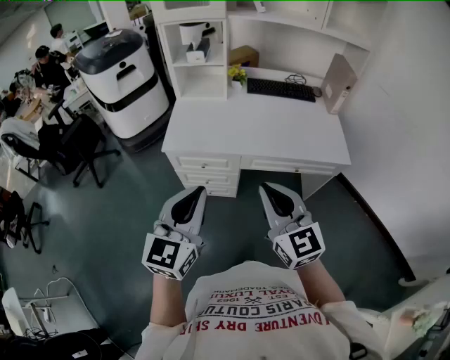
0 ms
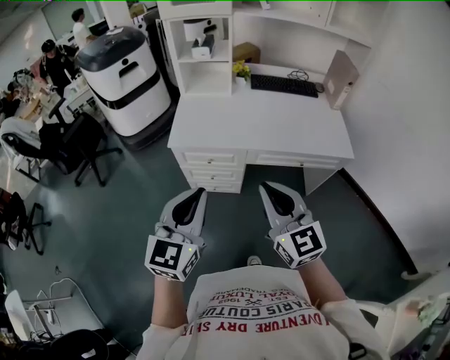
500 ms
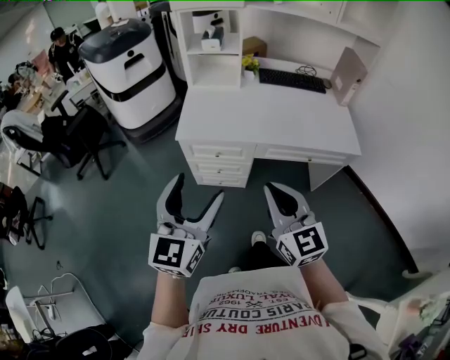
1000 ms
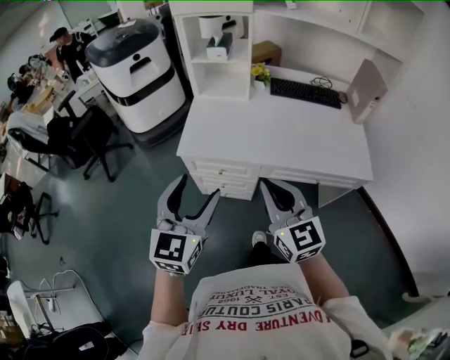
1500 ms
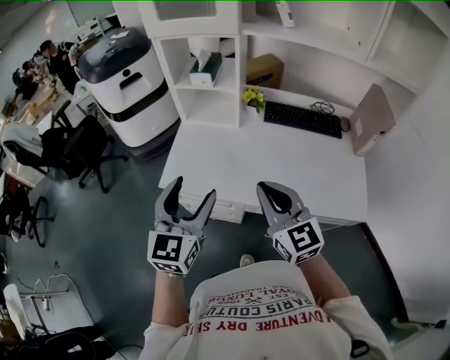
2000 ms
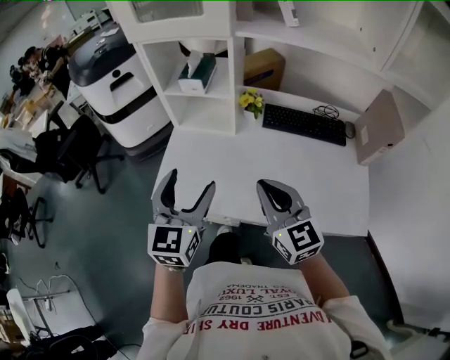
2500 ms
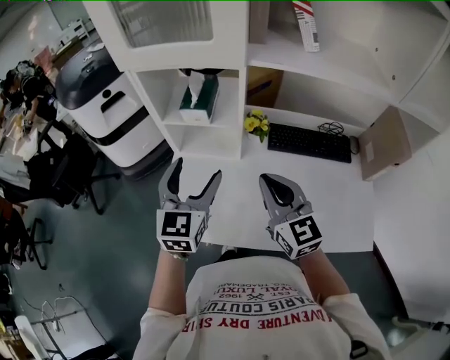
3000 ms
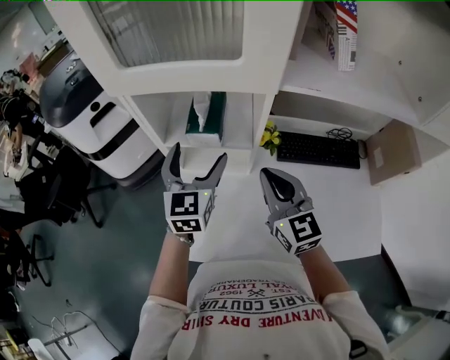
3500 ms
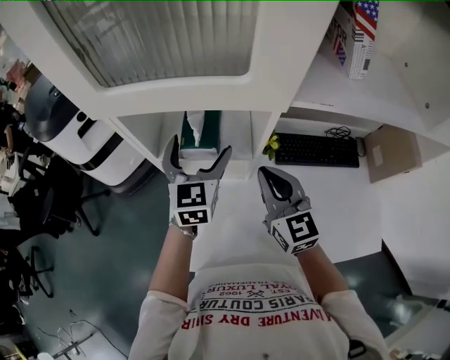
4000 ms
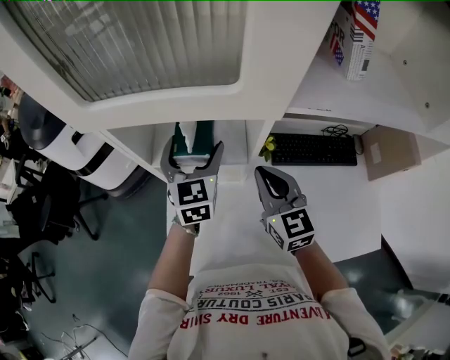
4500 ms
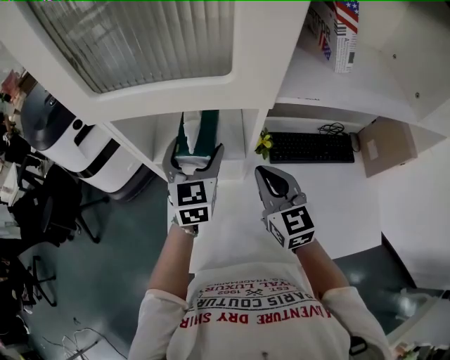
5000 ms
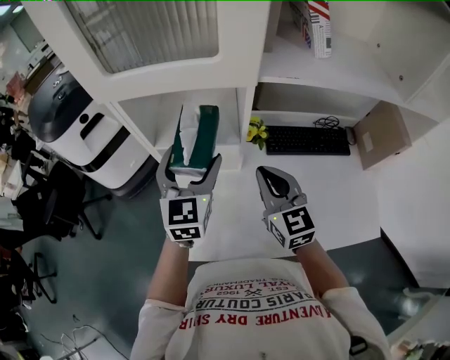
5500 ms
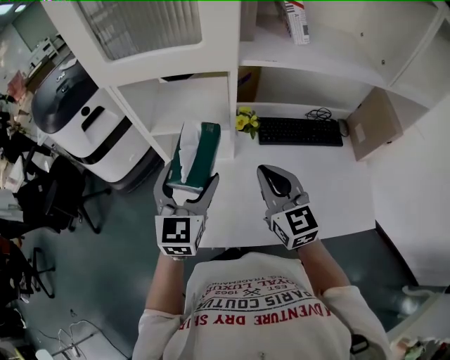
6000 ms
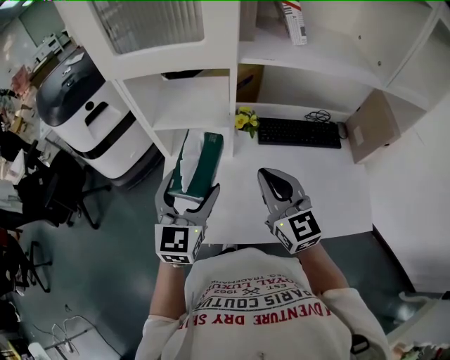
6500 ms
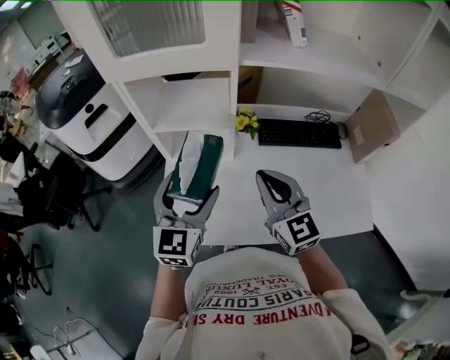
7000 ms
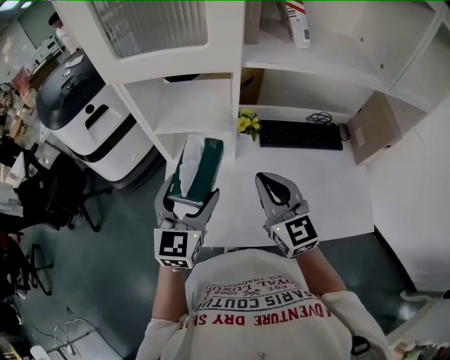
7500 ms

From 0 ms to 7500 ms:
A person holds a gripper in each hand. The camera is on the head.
From 0 ms to 2000 ms: Both grippers move forward, some 25 cm. The left gripper opens.
From 2000 ms to 4000 ms: Both grippers move forward, roughly 40 cm. The left gripper opens its fingers.
From 4000 ms to 5500 ms: The left gripper travels backward by some 10 cm; the right gripper goes some 5 cm backward.
From 5500 ms to 7500 ms: The right gripper goes roughly 10 cm backward. The left gripper moves backward, some 15 cm.

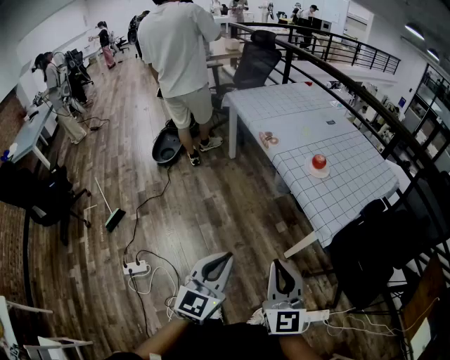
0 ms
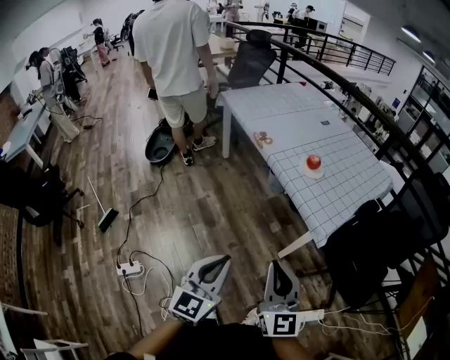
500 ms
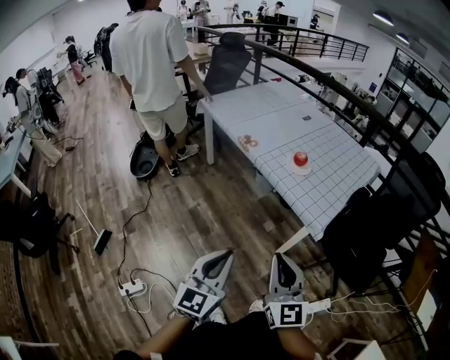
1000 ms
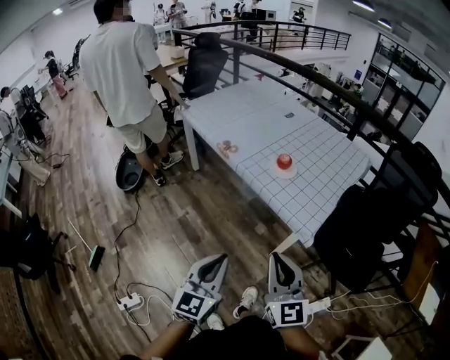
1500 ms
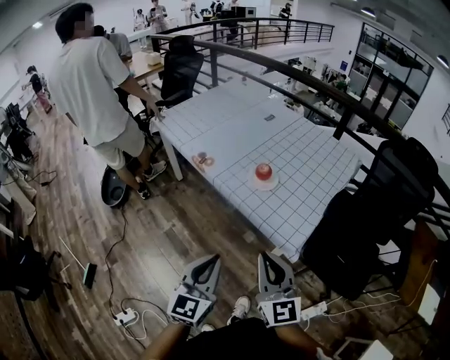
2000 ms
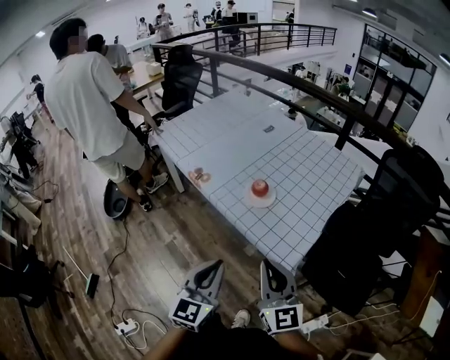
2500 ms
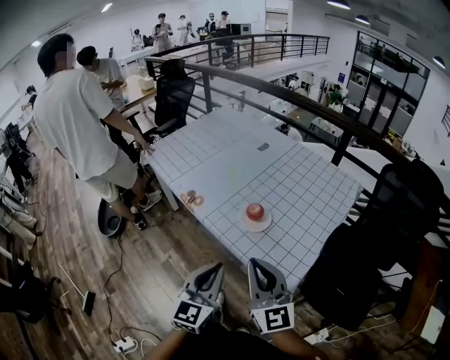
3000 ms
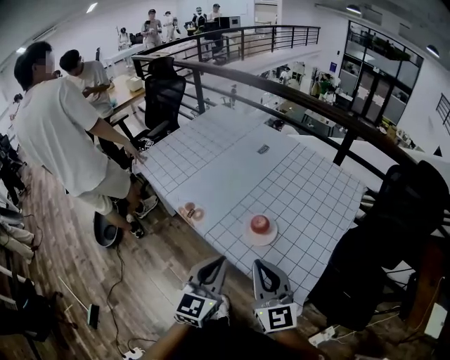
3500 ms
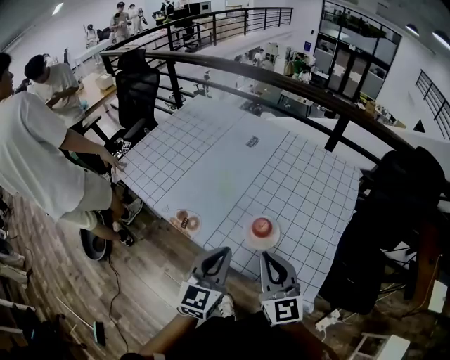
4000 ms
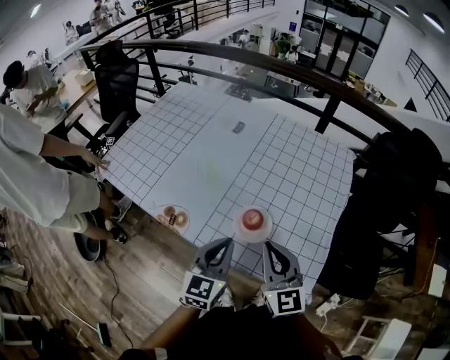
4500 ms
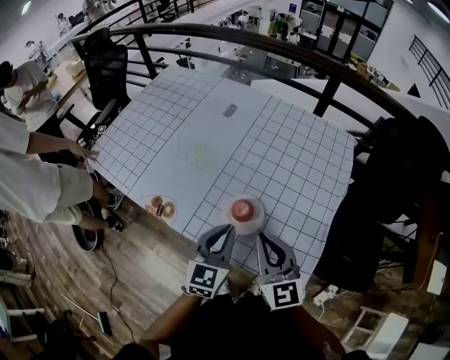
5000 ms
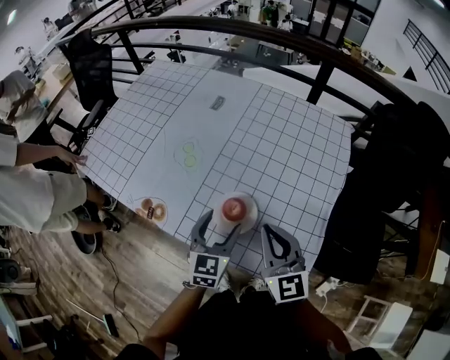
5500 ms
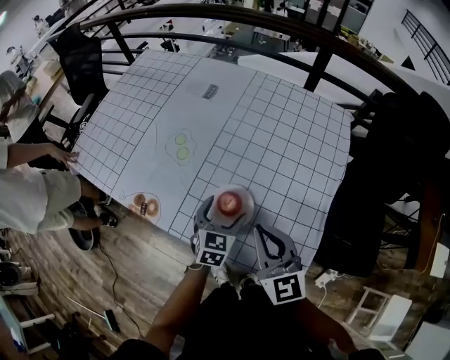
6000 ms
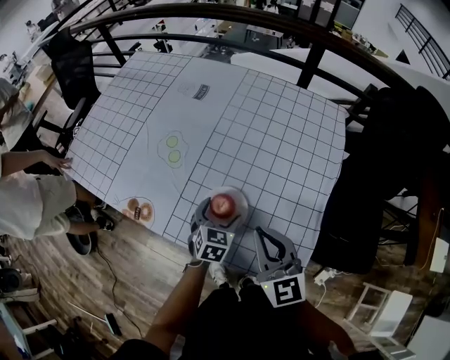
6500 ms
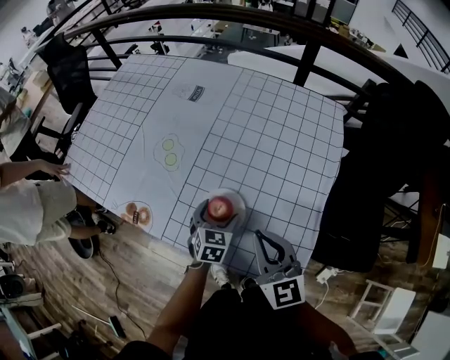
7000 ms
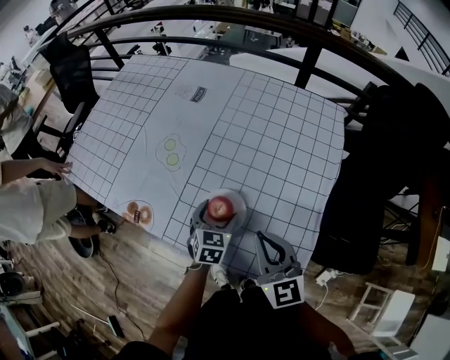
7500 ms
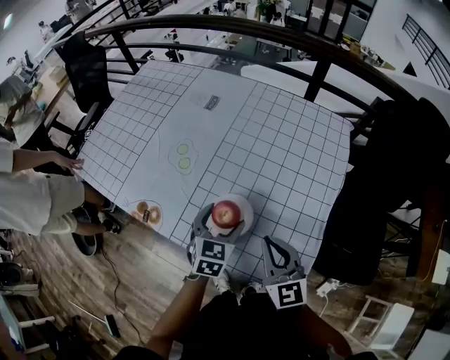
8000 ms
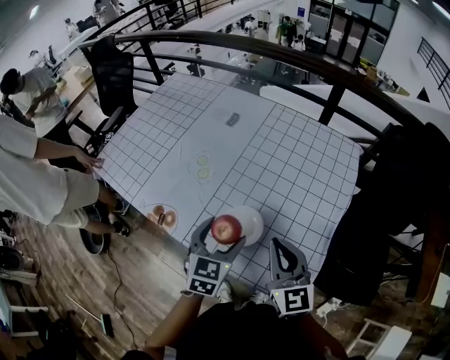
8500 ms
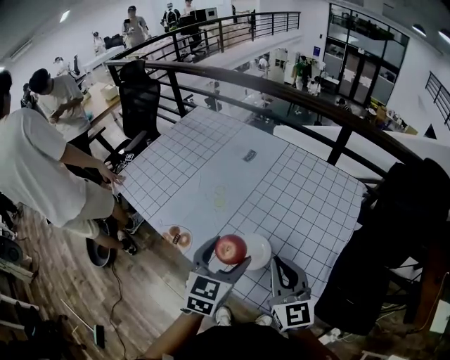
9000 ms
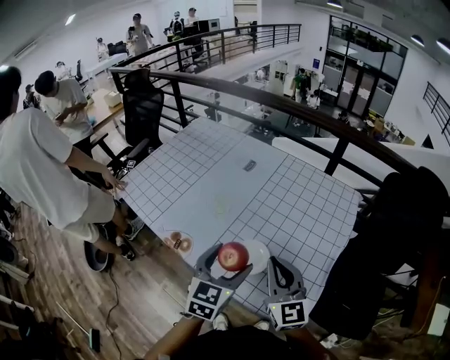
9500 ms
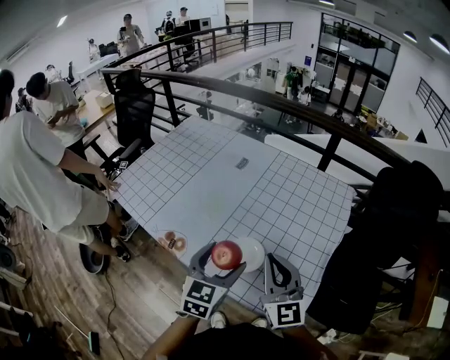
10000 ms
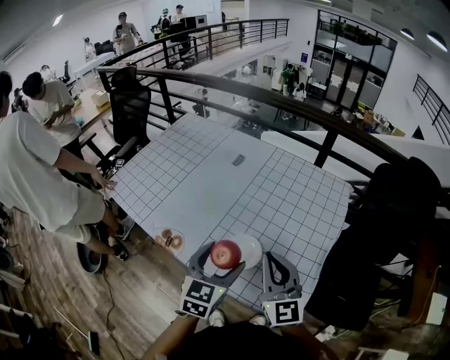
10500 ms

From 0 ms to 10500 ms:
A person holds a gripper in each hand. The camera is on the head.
From 0 ms to 2000 ms: Both grippers move forward and to the right, approximately 20 cm.
From 2000 ms to 4000 ms: Both grippers move forward, about 35 cm.
From 4000 ms to 6500 ms: The right gripper goes about 15 cm to the right, forward and downward, while the left gripper is displaced downward, forward and to the right by approximately 30 cm, tips its fingers downward by roughly 30 degrees, and opens up.
From 6500 ms to 8500 ms: The left gripper goes some 15 cm upward.
From 8500 ms to 10500 ms: Both grippers travel together upward, some 10 cm.

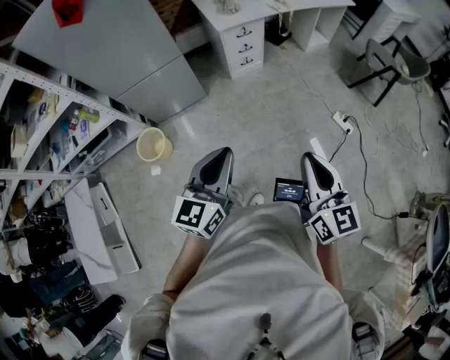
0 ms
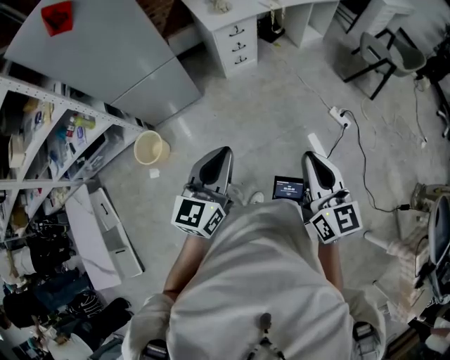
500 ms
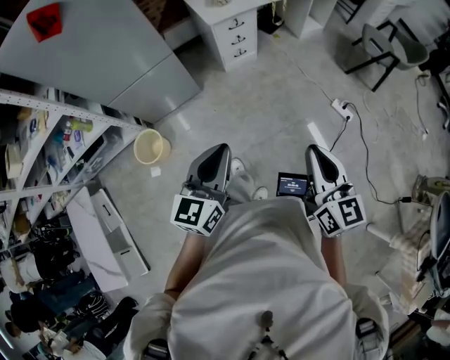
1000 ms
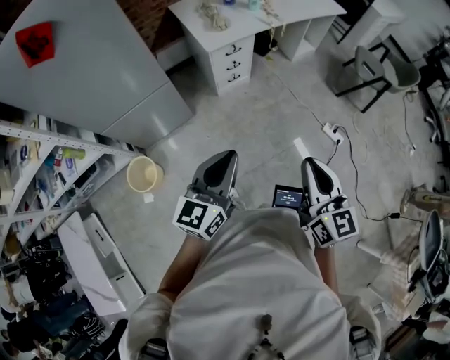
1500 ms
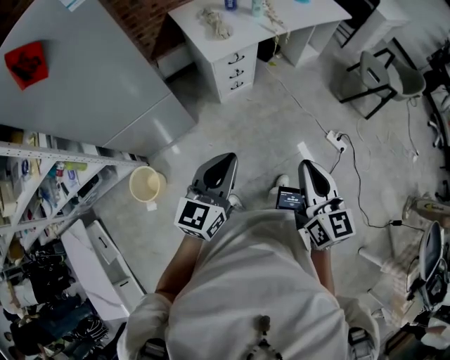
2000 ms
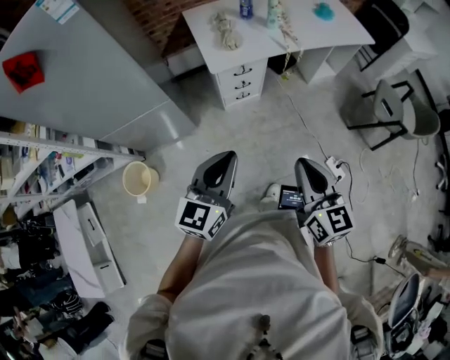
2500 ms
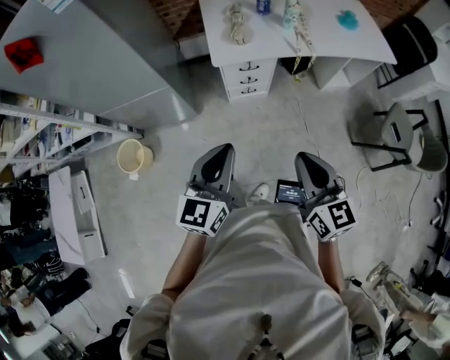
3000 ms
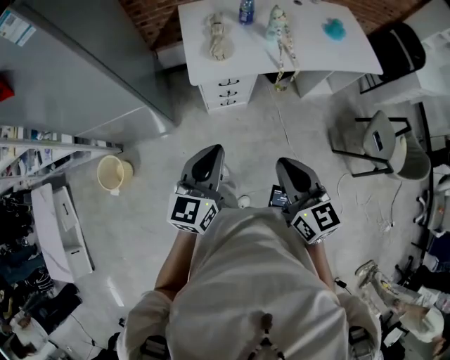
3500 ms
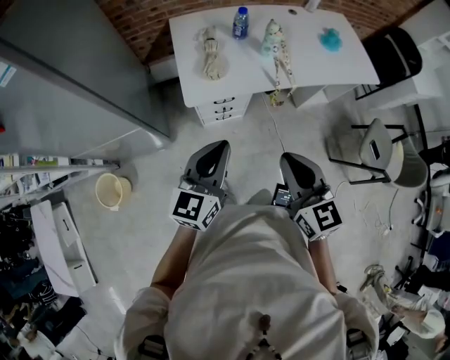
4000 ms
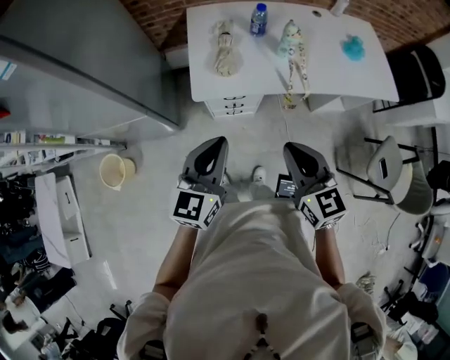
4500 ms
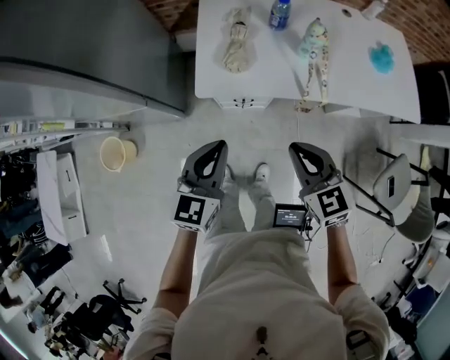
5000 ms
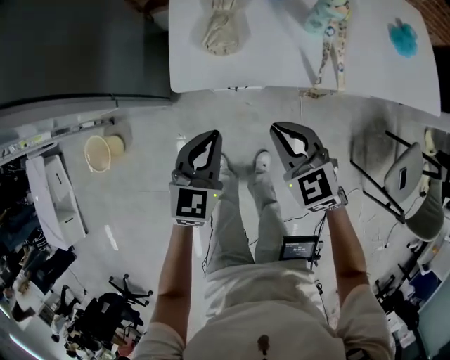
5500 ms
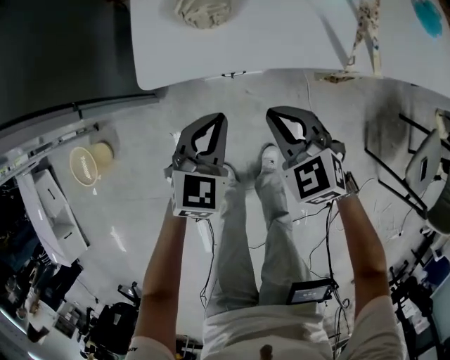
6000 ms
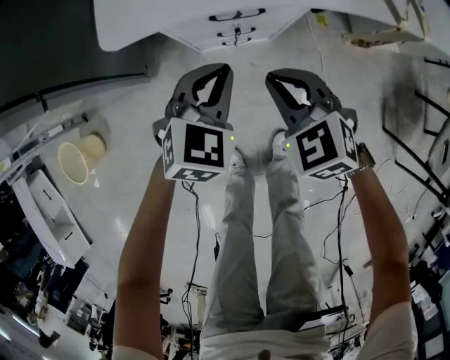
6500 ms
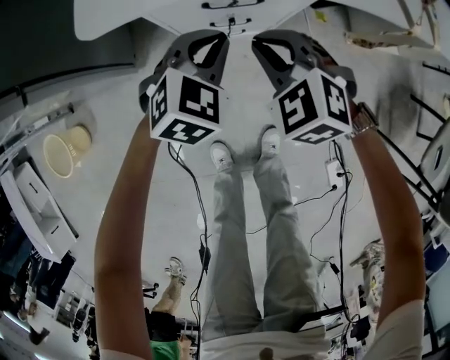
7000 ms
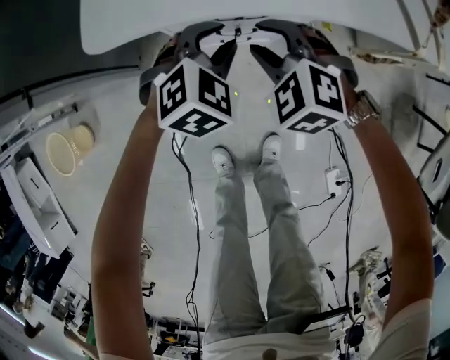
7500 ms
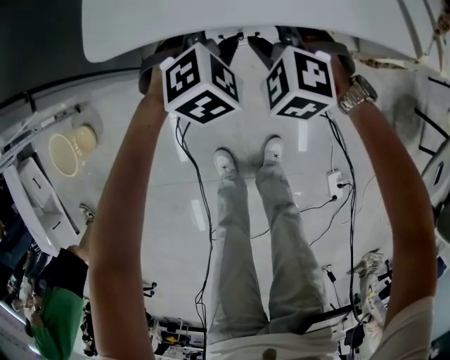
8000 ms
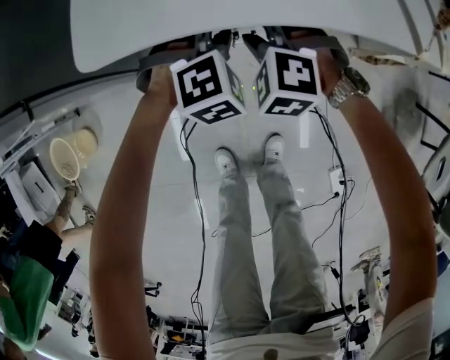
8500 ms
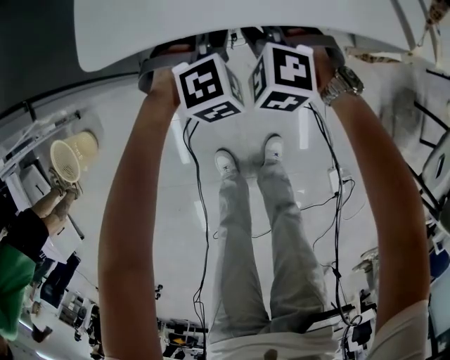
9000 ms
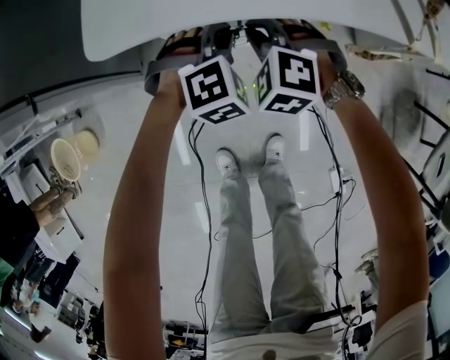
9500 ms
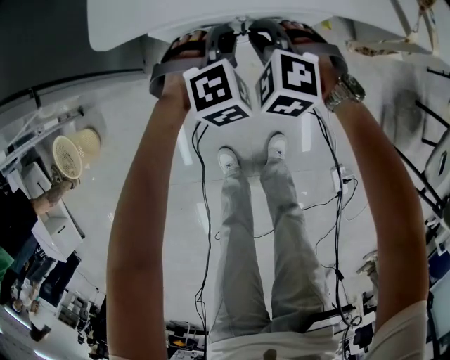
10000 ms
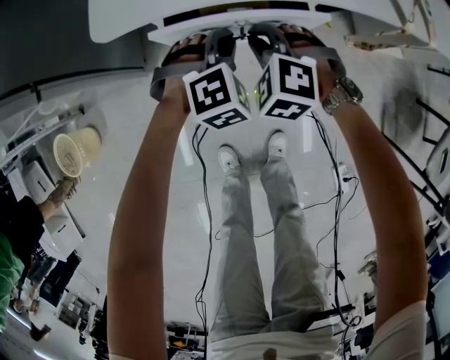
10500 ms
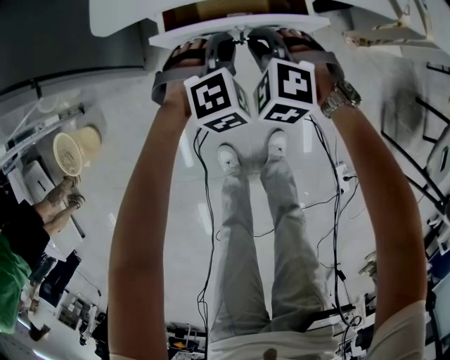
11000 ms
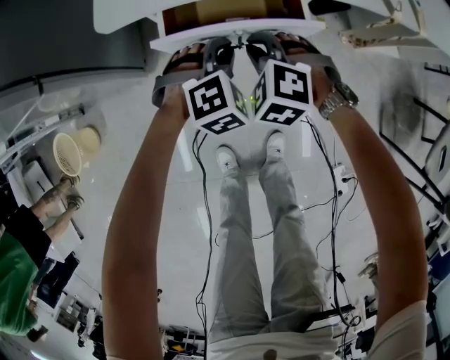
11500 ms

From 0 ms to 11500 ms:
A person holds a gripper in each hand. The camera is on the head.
From 0 ms to 2000 ms: The two grippers go some 25 cm forward.
From 2000 ms to 4000 ms: The left gripper changes place by approximately 40 cm. The right gripper moves some 40 cm, and swivels approximately 30 degrees.
From 4000 ms to 6000 ms: The two grippers go approximately 40 cm downward and forward. The left gripper turns by some 30 degrees; the right gripper swivels roughly 40 degrees.
From 6000 ms to 7500 ms: Both grippers travel together downward and forward, roughly 15 cm. The right gripper turns by roughly 30 degrees, and opens, while the left gripper rotates roughly 30 degrees, and opens.
From 7500 ms to 9500 ms: The right gripper closes its fingers. The left gripper swivels about 20 degrees, and closes.
From 9500 ms to 11500 ms: The grippers both shift backward by approximately 5 cm.
